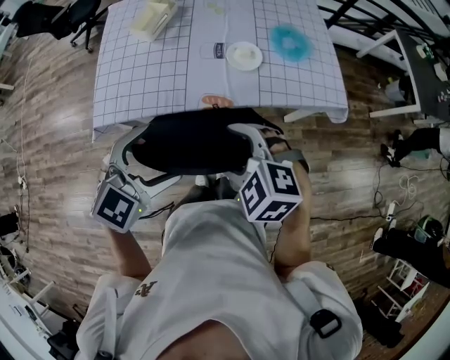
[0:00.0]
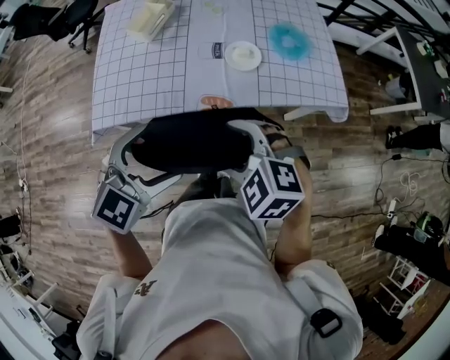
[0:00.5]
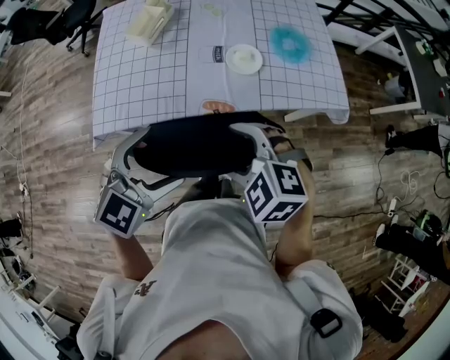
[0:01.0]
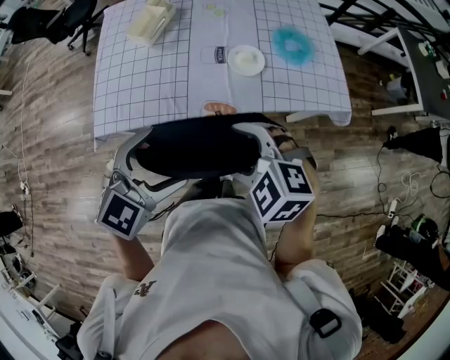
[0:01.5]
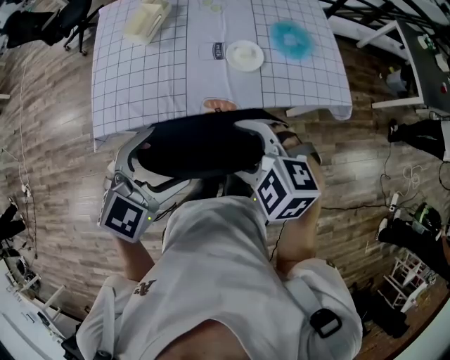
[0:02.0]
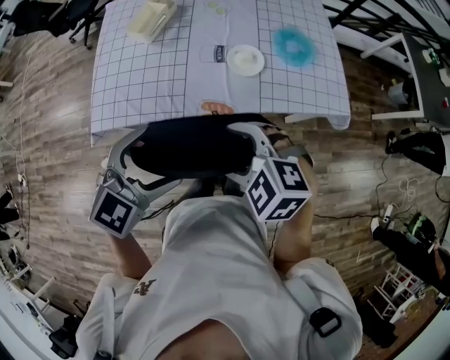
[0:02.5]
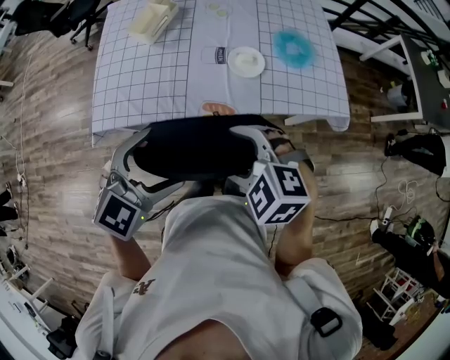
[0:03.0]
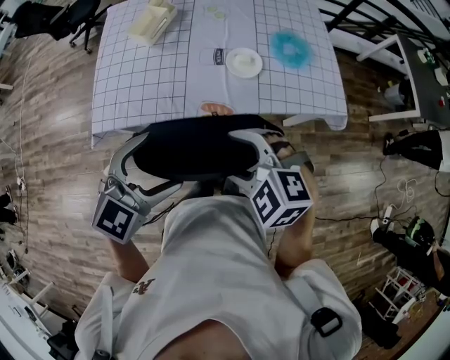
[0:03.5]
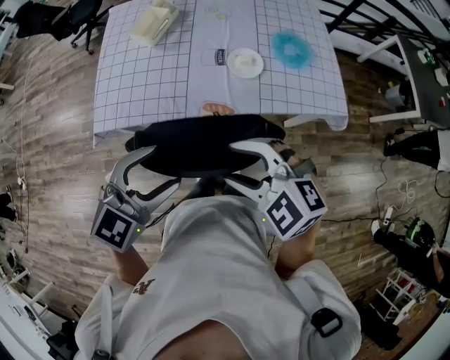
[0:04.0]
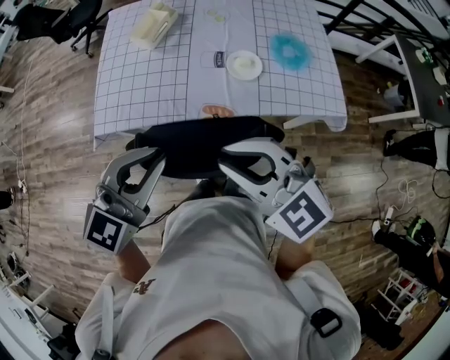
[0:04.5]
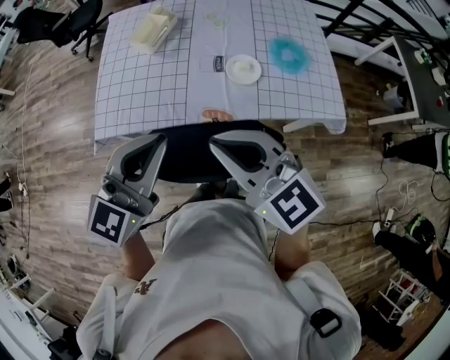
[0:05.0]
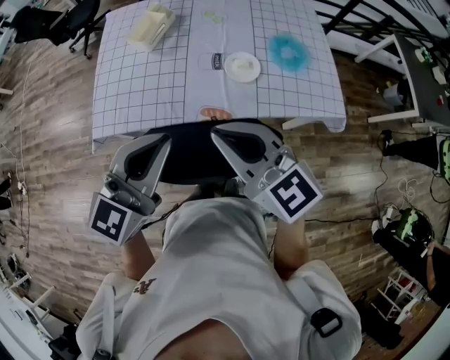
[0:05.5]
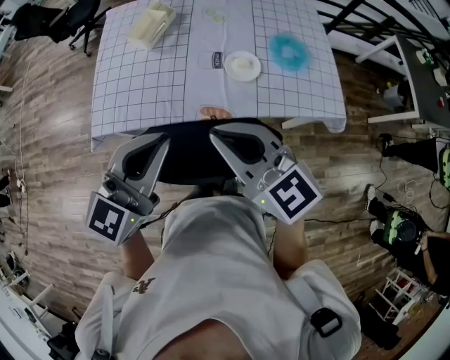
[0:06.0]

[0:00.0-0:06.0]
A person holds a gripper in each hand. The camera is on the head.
0:00.0 to 0:02.0: The grippers move only a little.
0:02.0 to 0:04.0: The right gripper shifts by some 5 cm.
0:04.0 to 0:06.0: The right gripper travels forward and upward by some 10 cm, changes its angle by roughly 40 degrees, and closes its fingers; the left gripper travels upward and forward by approximately 10 cm, rotates approximately 30 degrees, and closes its fingers.

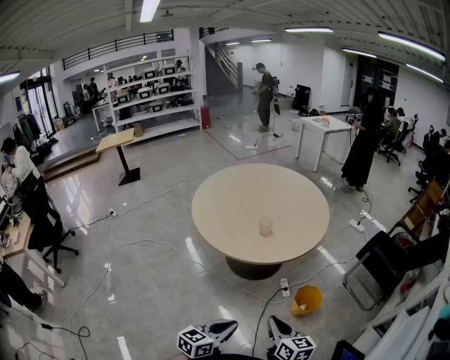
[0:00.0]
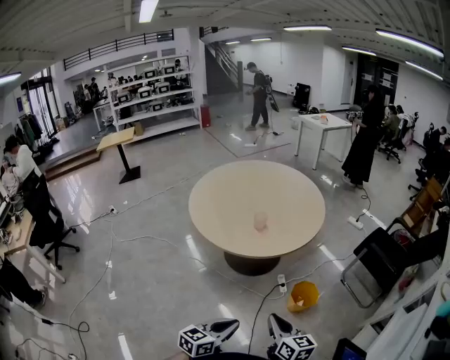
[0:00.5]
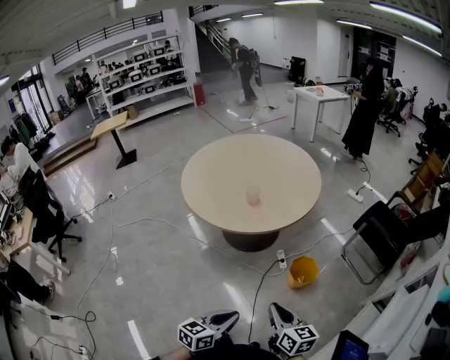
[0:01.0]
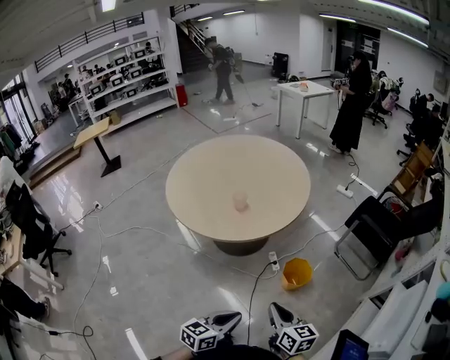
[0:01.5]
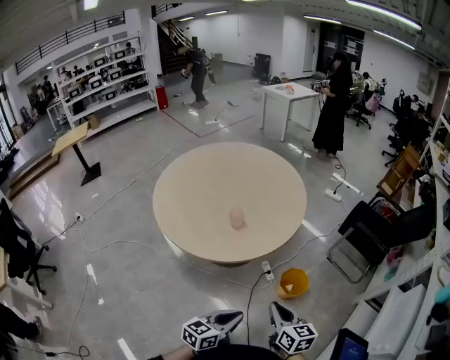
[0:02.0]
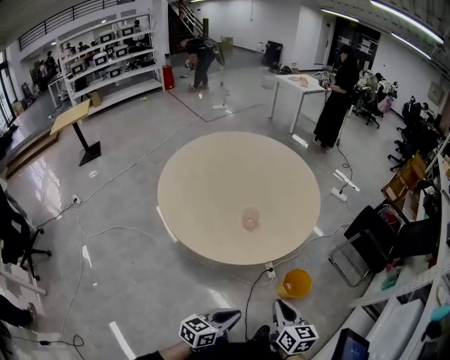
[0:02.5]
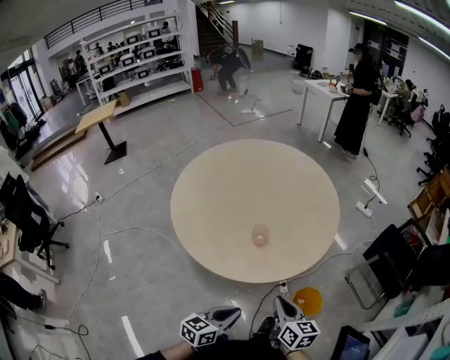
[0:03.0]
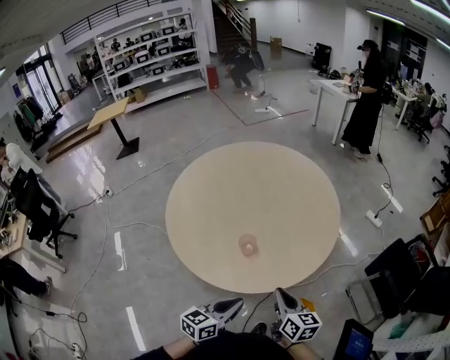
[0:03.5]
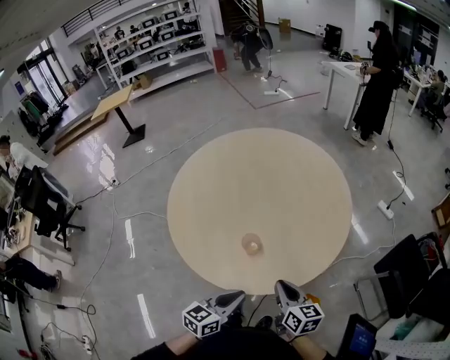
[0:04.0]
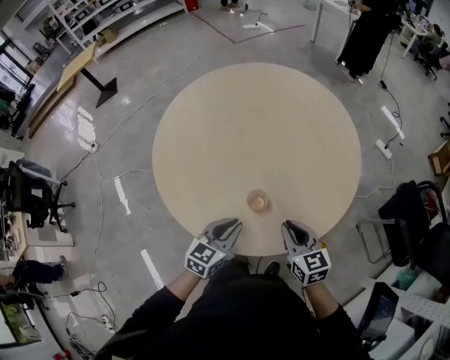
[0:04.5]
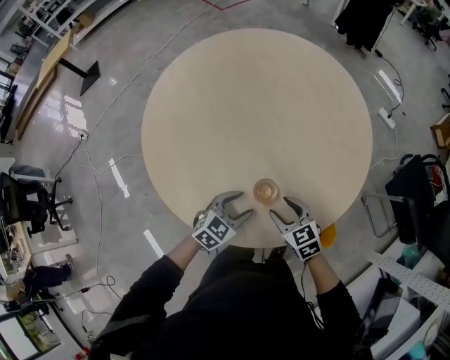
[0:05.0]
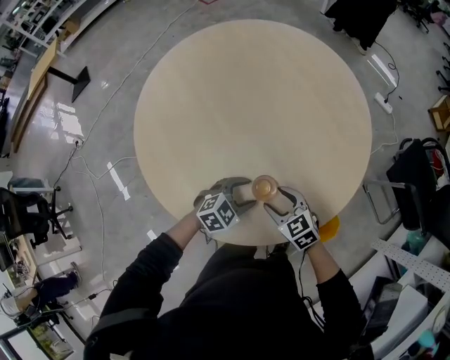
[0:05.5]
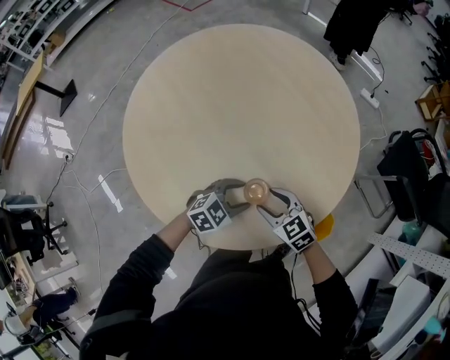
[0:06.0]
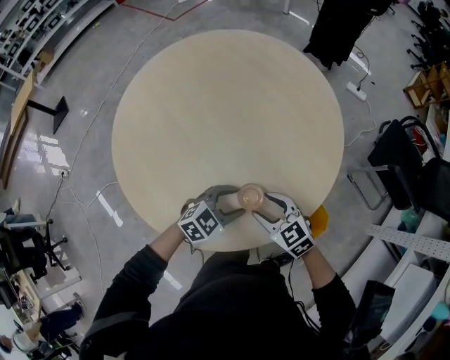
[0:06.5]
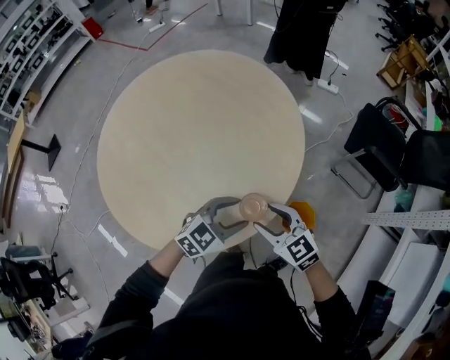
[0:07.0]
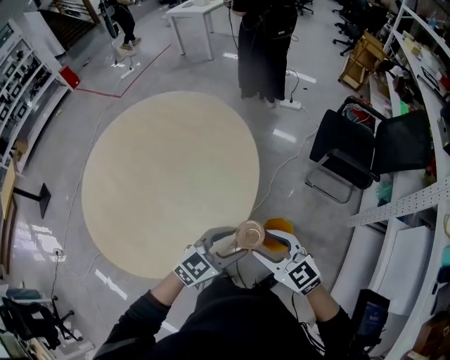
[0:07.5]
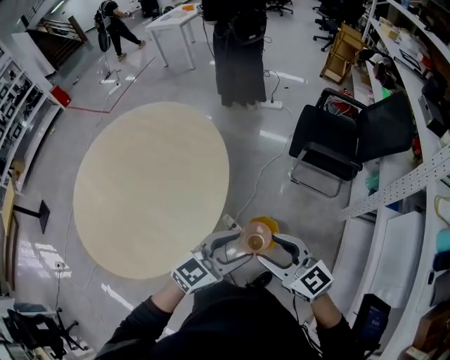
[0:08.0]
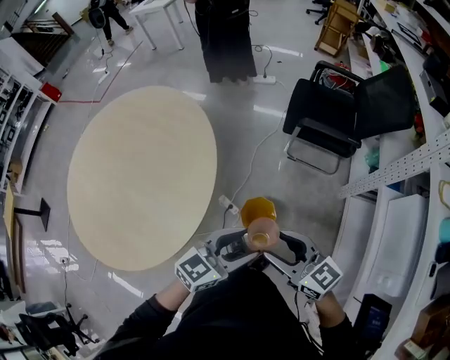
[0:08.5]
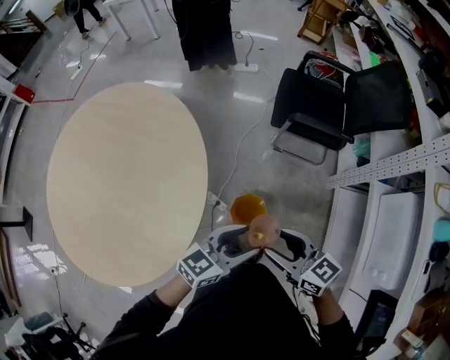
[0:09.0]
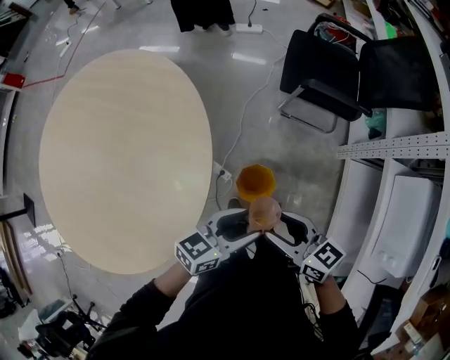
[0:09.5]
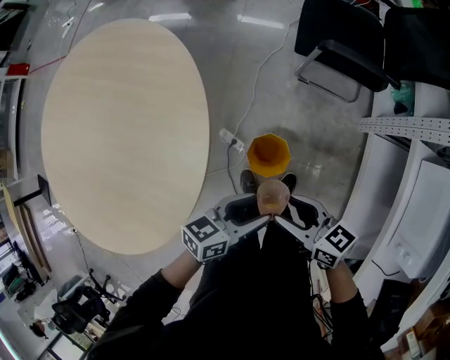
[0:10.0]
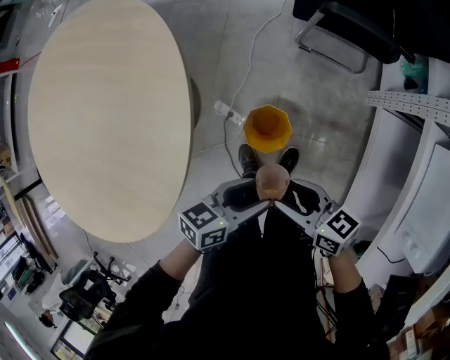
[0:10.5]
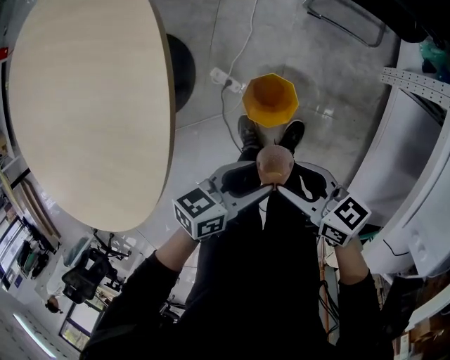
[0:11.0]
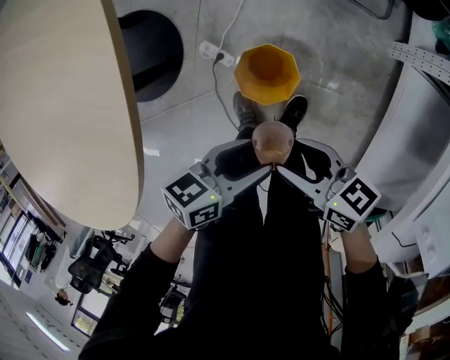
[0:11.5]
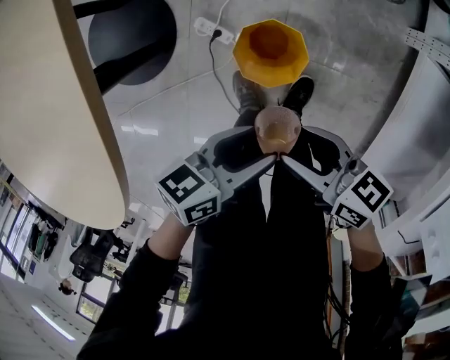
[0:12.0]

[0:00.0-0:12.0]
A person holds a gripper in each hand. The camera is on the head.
0:00.0 to 0:02.0: The two grippers go some 15 cm forward.
0:02.0 to 0:04.0: Both grippers travel together forward, roughly 35 cm. The left gripper changes its angle by some 20 degrees. Meanwhile the right gripper swivels approximately 20 degrees.
0:04.0 to 0:06.0: The right gripper is displaced to the left, downward and forward by about 25 cm, swivels approximately 30 degrees, and opens up, while the left gripper goes about 25 cm forward and downward, rotates approximately 60 degrees, and opens its fingers.
0:06.0 to 0:08.0: The two grippers travel together, to the right, approximately 50 cm. Both grippers move upward, roughly 20 cm. The left gripper changes its angle by approximately 30 degrees. The right gripper turns by some 40 degrees.
0:08.0 to 0:10.0: The grippers both shift downward by roughly 20 cm. The right gripper swivels approximately 40 degrees. Meanwhile the left gripper twists roughly 40 degrees counterclockwise, seen from behind.
0:10.0 to 0:12.0: Both grippers travel together downward, roughly 25 cm.

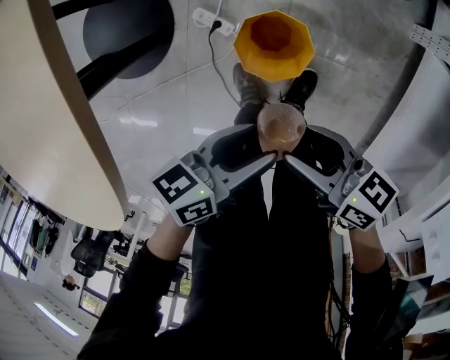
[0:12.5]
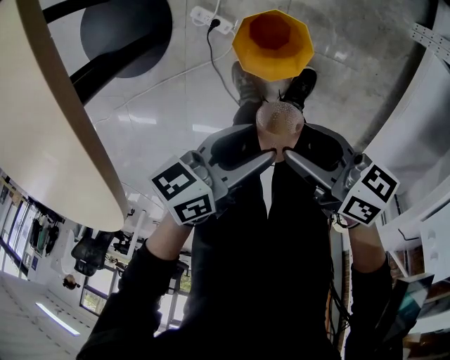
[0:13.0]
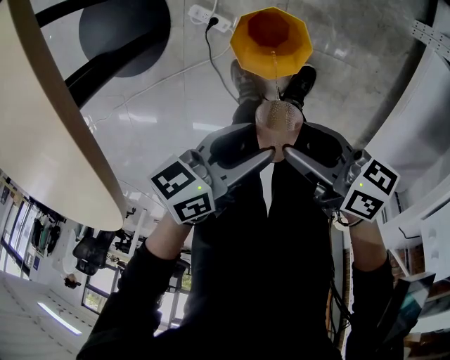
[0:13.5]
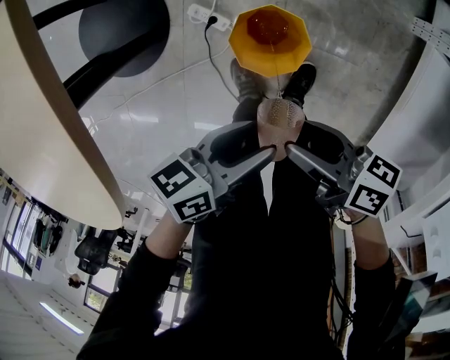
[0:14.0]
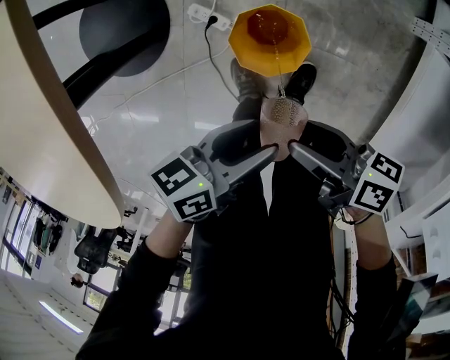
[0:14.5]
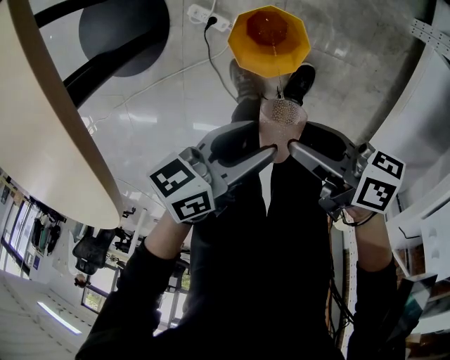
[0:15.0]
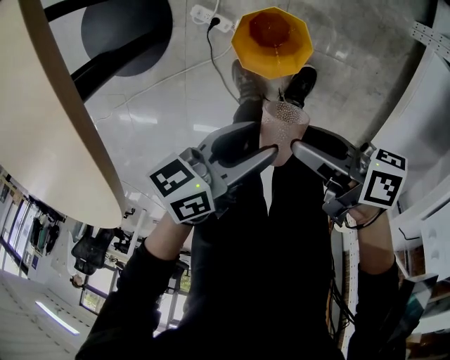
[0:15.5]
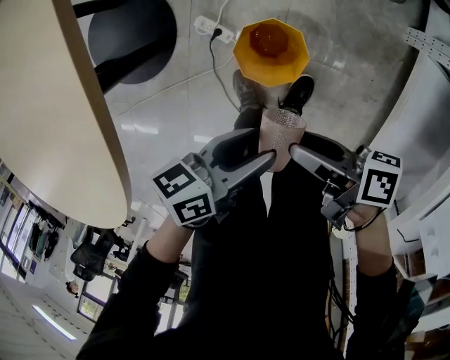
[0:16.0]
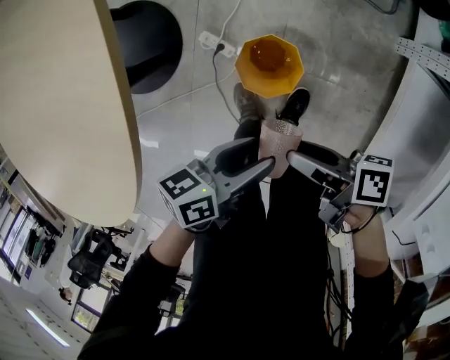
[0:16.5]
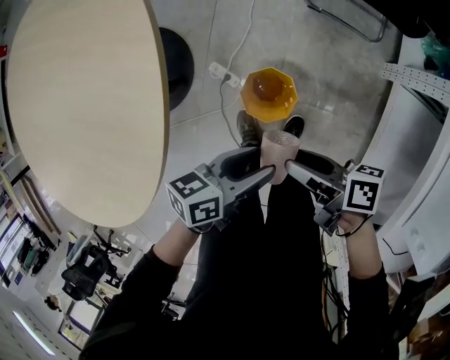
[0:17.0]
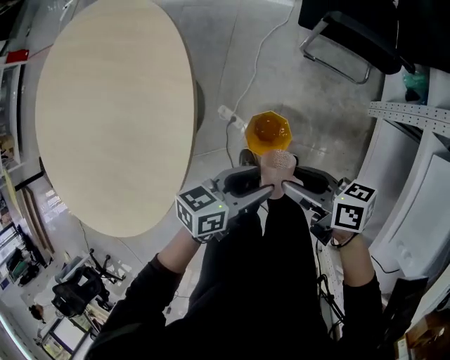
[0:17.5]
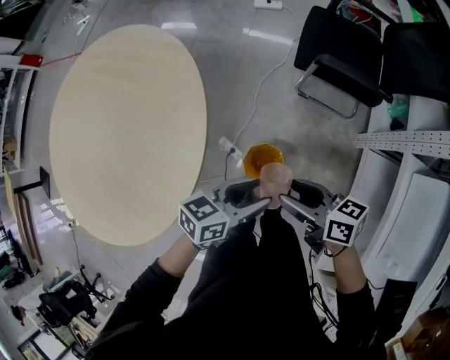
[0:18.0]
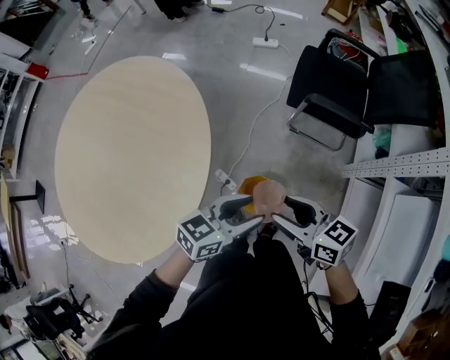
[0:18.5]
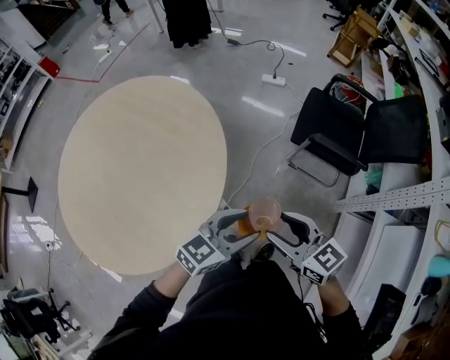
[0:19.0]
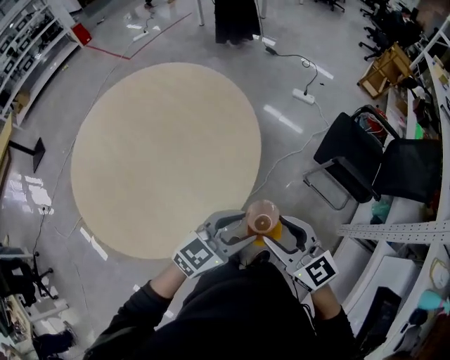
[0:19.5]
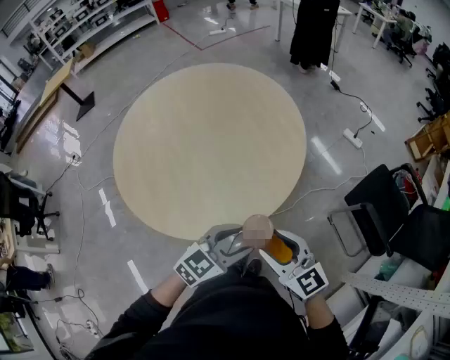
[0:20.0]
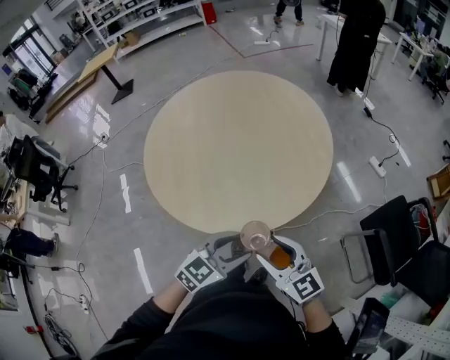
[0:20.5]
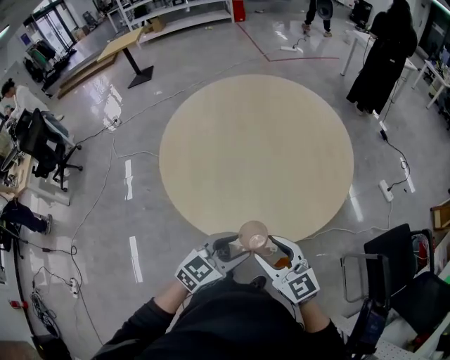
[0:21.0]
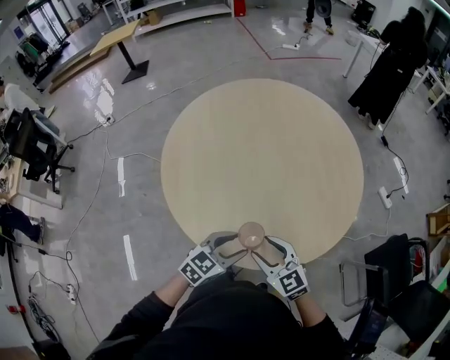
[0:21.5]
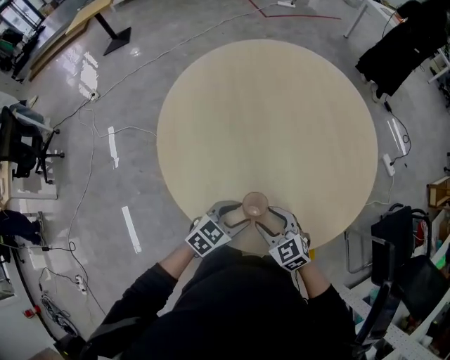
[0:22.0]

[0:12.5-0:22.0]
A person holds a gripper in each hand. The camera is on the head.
0:12.5 to 0:14.5: The right gripper turns by approximately 20 degrees.
0:14.5 to 0:16.5: The grippers both shift upward by some 5 cm.
0:16.5 to 0:18.0: The two grippers go about 25 cm upward. The left gripper turns by roughly 30 degrees. The right gripper rolls counterclockwise, seen from behind, by some 40 degrees.
0:18.0 to 0:20.0: The right gripper changes place by approximately 30 cm, and rotates around the line of its fingers by about 60 degrees, counterclockwise from behind; the left gripper ends up some 25 cm from where it was, and turns by some 50 degrees.
0:20.0 to 0:22.0: Both grippers move to the left, forward and downward, some 35 cm. The right gripper changes its angle by some 30 degrees; the left gripper rotates about 20 degrees.
